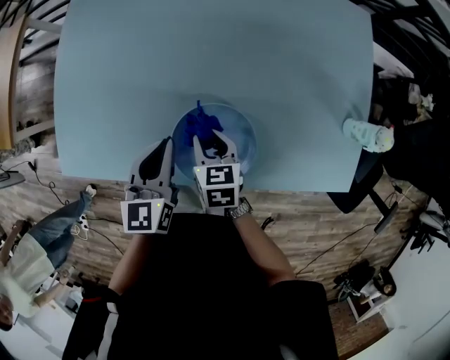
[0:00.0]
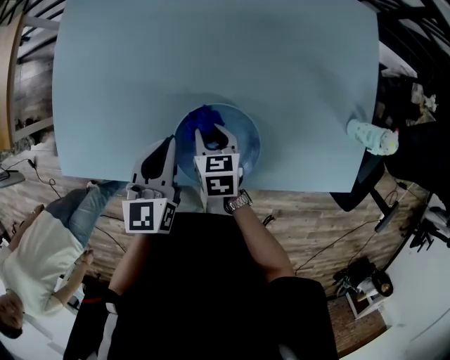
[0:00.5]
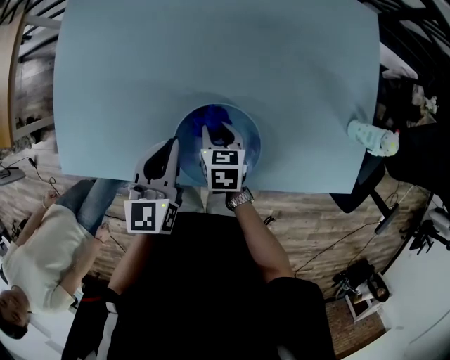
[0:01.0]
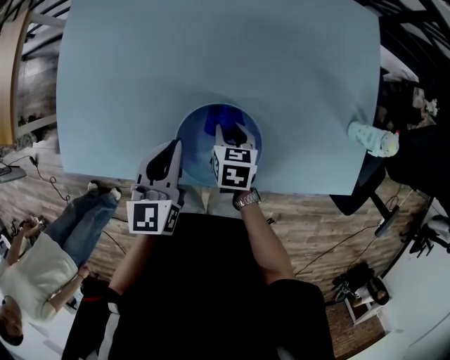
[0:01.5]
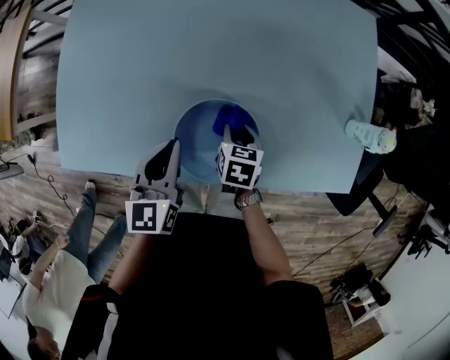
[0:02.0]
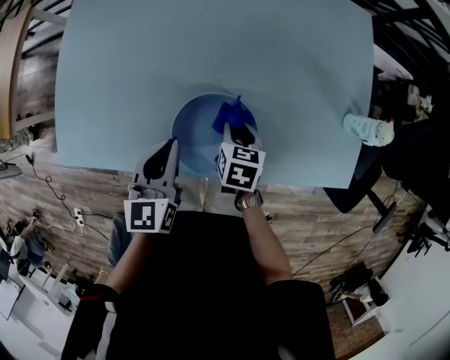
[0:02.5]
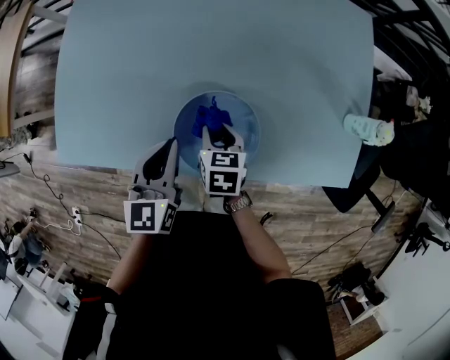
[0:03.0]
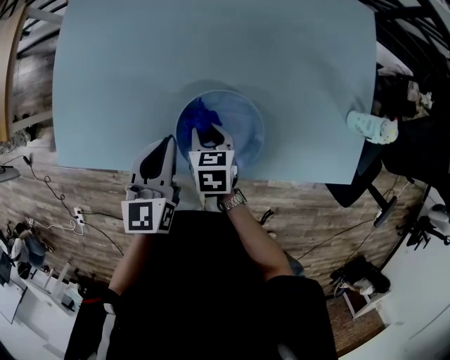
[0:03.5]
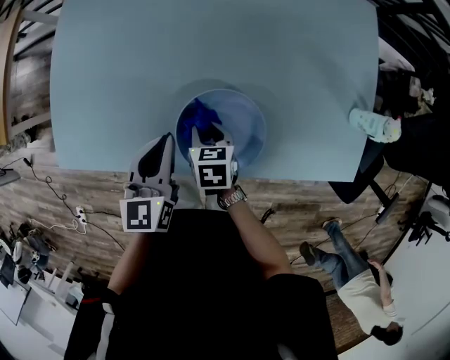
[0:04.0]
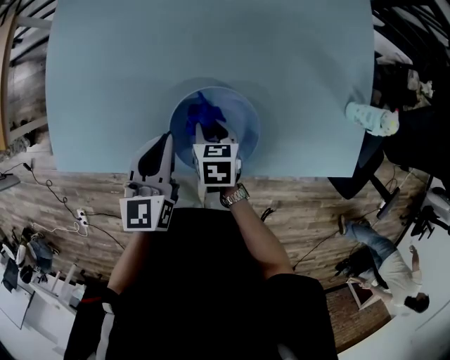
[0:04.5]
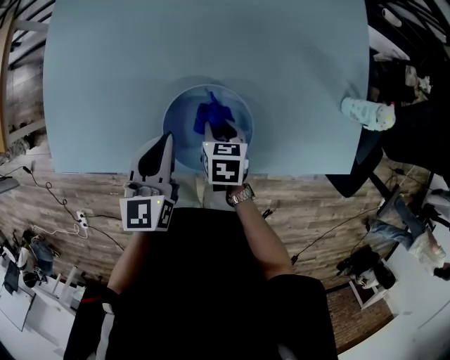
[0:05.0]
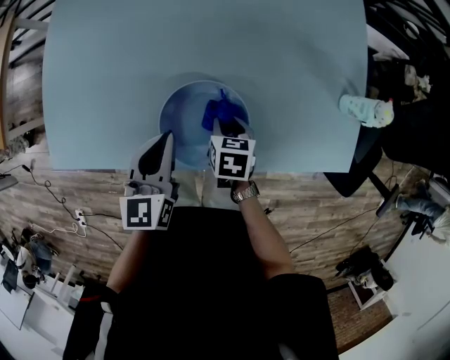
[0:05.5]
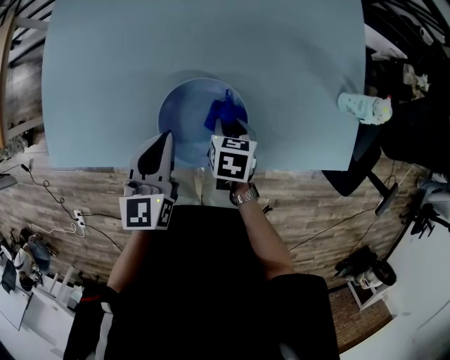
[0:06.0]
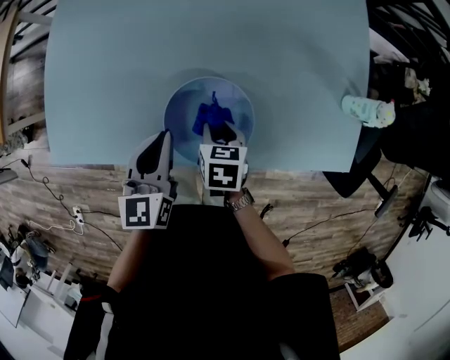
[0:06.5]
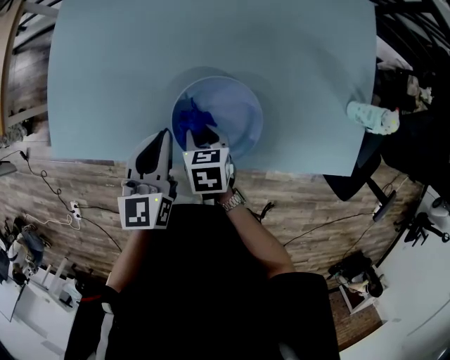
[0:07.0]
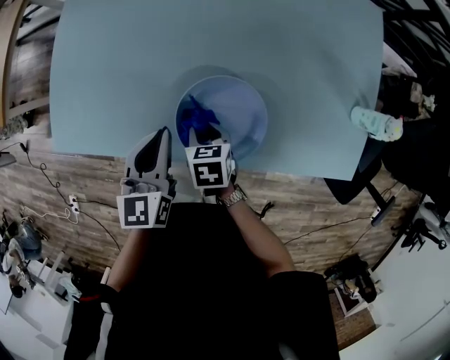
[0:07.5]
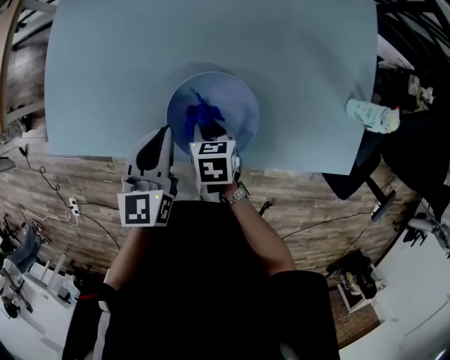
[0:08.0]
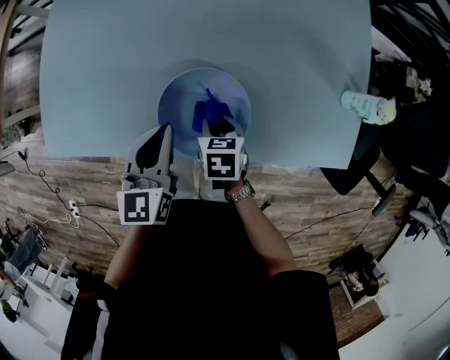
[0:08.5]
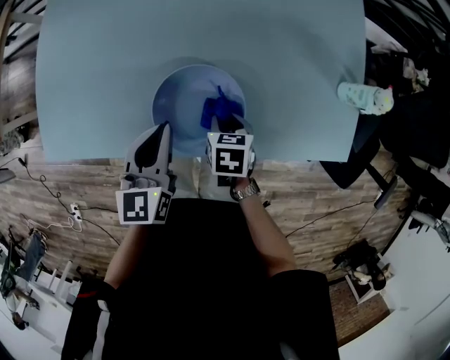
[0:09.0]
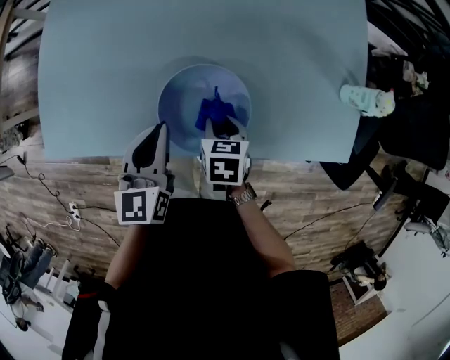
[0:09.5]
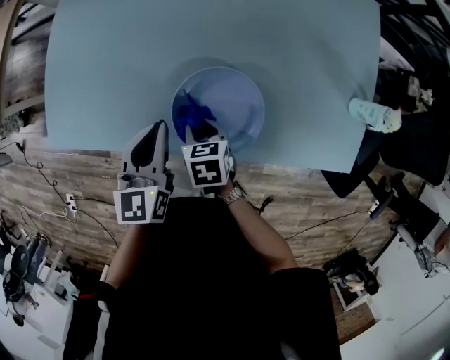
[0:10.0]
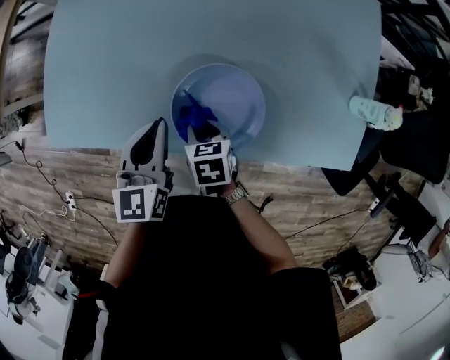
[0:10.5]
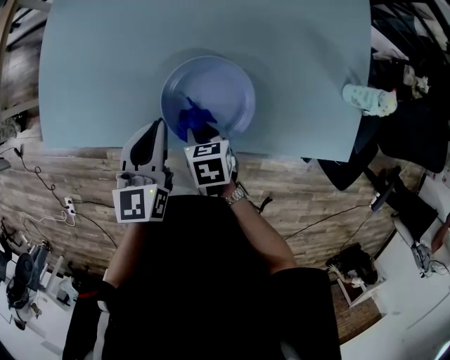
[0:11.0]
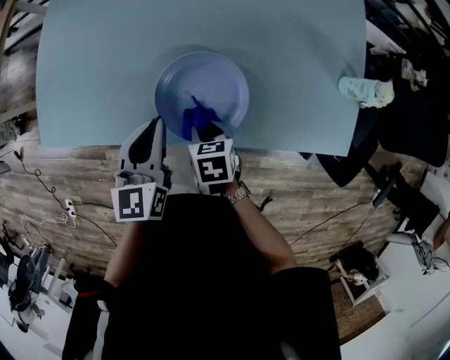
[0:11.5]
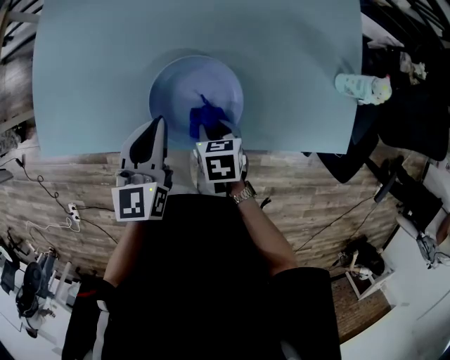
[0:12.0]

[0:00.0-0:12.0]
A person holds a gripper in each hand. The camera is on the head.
0:00.0 to 0:02.0: The right gripper travels to the right by roughly 10 cm.
0:02.0 to 0:04.0: The right gripper heads to the left, covering about 10 cm.
0:04.0 to 0:06.0: The right gripper shifts approximately 10 cm to the right, while the left gripper moves approximately 5 cm.
0:06.0 to 0:08.0: The right gripper moves to the left, some 10 cm.
0:08.0 to 0:10.0: The right gripper moves about 10 cm to the right and comes back.
0:10.0 to 0:12.0: The left gripper changes place by approximately 5 cm. The right gripper shifts about 10 cm to the right and backward.

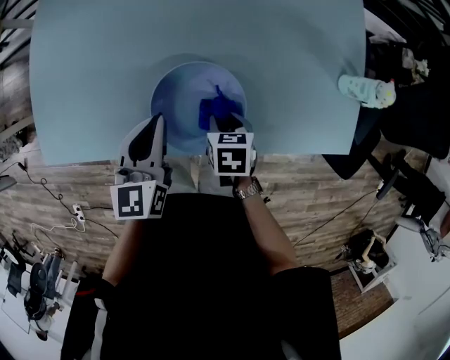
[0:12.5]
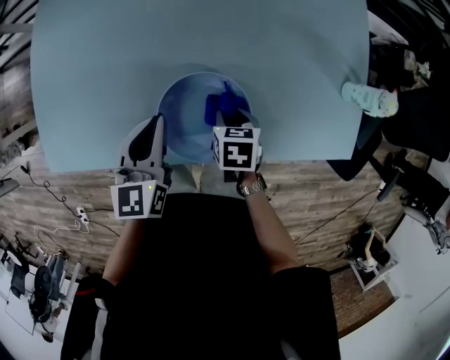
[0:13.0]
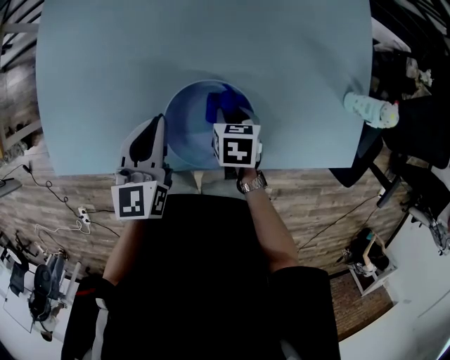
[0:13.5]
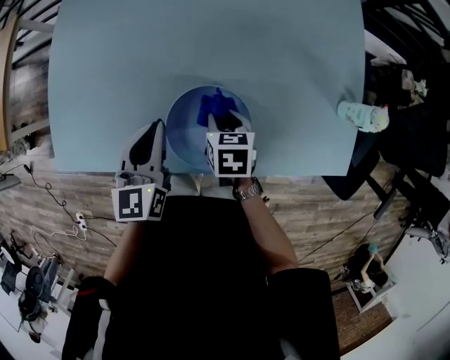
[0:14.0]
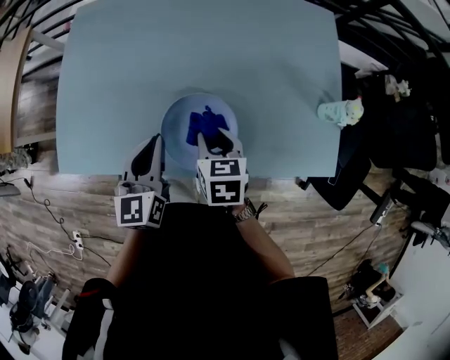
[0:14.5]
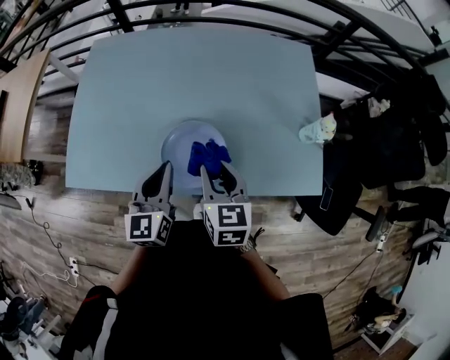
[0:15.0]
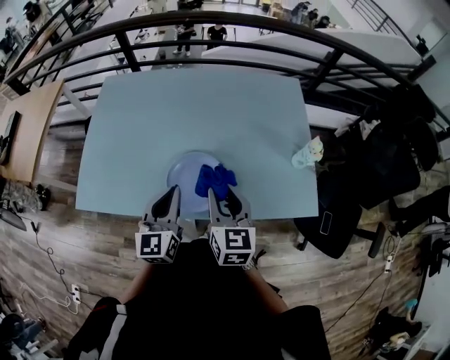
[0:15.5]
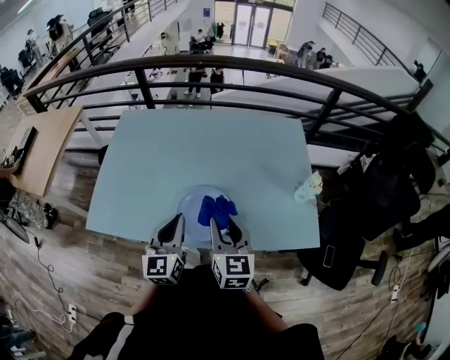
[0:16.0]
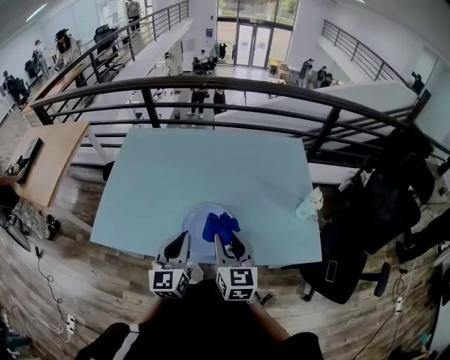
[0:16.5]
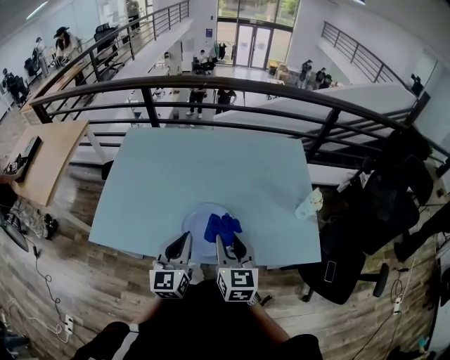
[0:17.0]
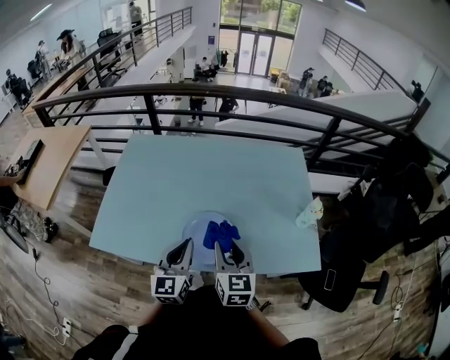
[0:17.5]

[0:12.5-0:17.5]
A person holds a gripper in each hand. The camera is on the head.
0:12.5 to 0:15.0: The right gripper goes about 25 cm upward, and tilts its fingers approximately 40 degrees upward. The left gripper shifts approximately 10 cm upward and backward.
0:15.0 to 0:17.5: The right gripper travels upward by some 5 cm. The left gripper shifts some 5 cm backward.

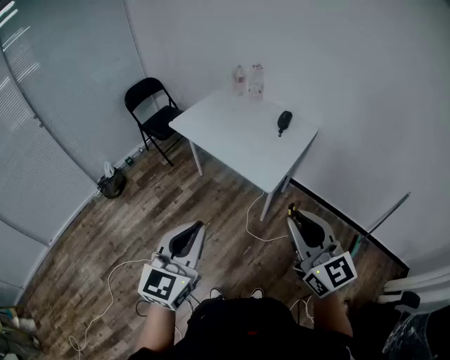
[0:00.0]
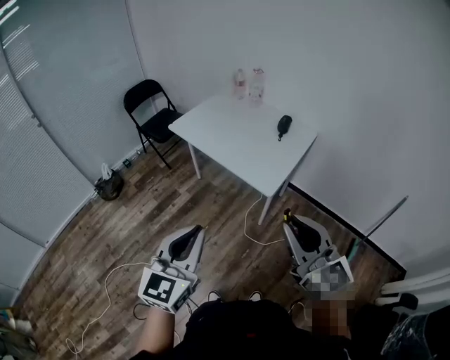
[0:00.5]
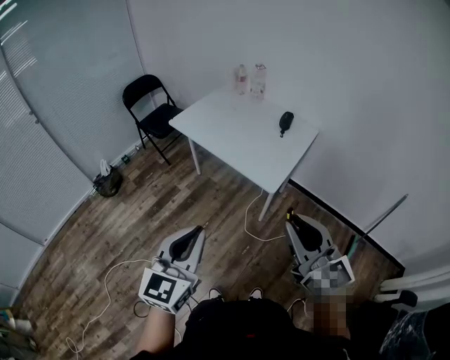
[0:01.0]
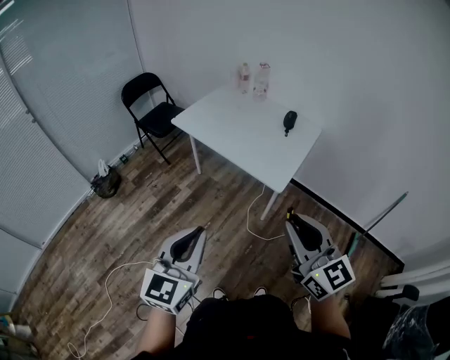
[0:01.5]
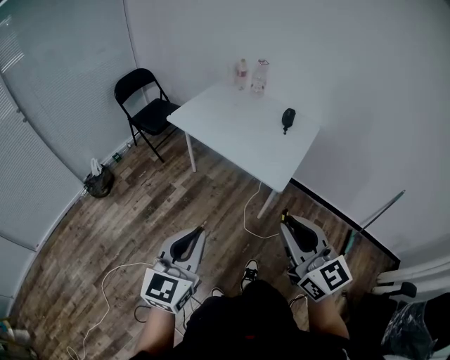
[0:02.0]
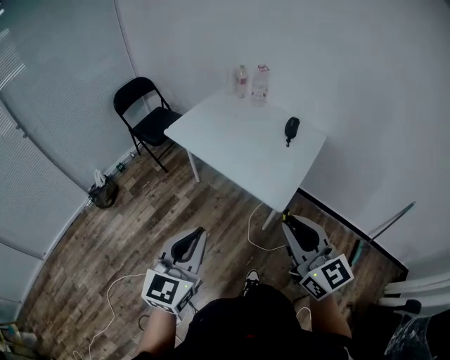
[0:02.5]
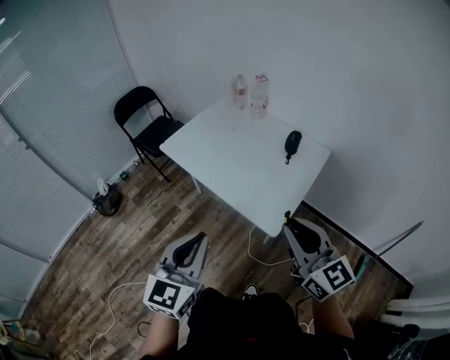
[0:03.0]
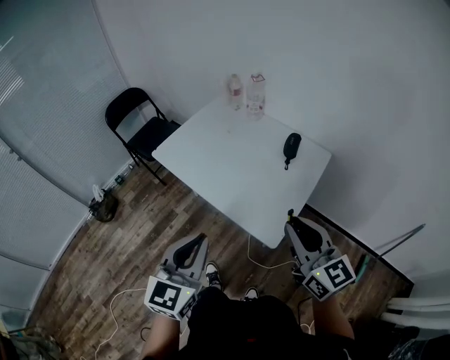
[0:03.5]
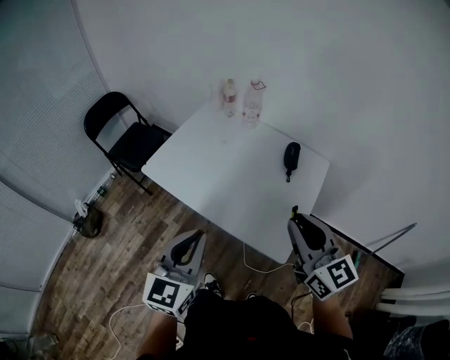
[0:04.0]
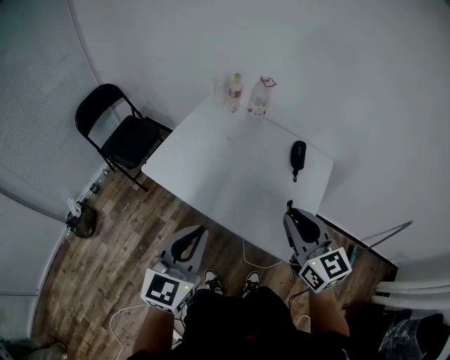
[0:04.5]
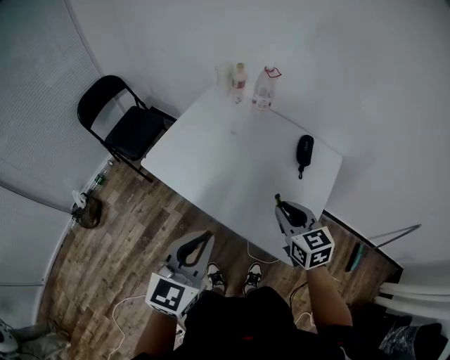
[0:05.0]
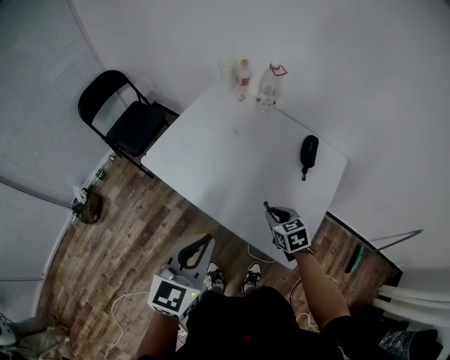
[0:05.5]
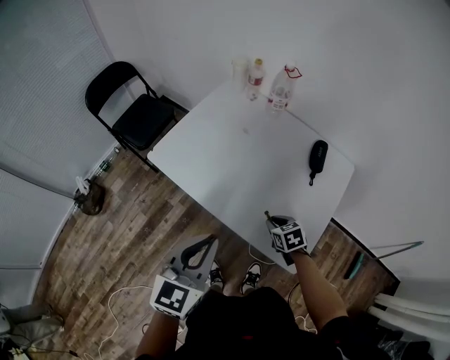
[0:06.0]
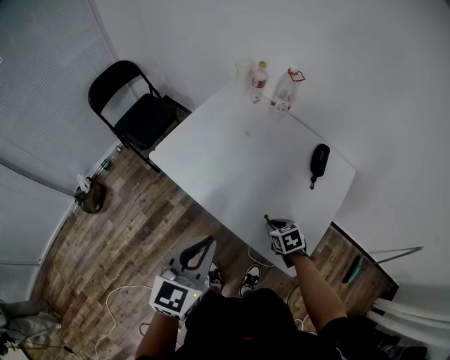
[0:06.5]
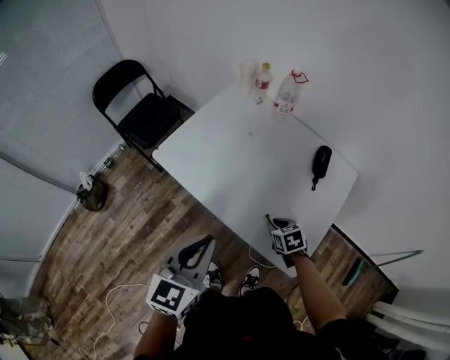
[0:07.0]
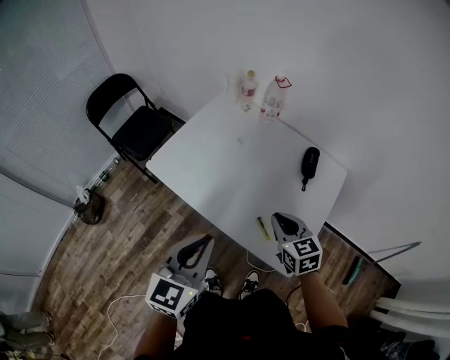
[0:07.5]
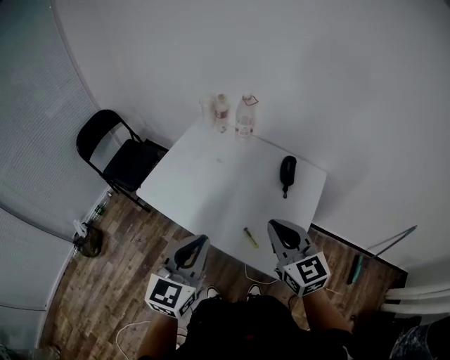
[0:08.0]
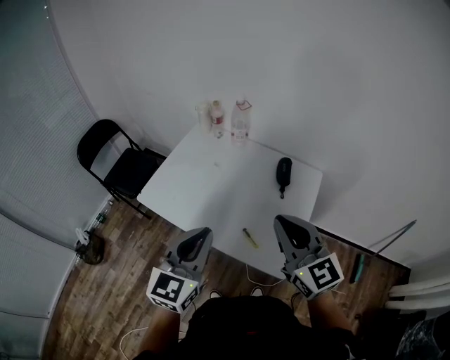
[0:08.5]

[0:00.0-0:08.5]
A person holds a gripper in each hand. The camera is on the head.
0:00.0 to 0:02.0: The left gripper shifts roughly 15 cm to the left and downward. The right gripper shifts roughly 15 cm to the left.
0:02.0 to 0:04.0: Both grippers move forward, some 40 cm.
0:04.0 to 0:06.5: The left gripper shifts approximately 10 cm forward and downward. Meanwhile the right gripper heads downward, covering roughly 40 cm, and points its fingers roughly 60 degrees further downward.
0:06.5 to 0:08.5: The left gripper is displaced upward and to the right by roughly 10 cm, while the right gripper moves upward, roughly 40 cm, and angles its fingers upward, by some 60 degrees.

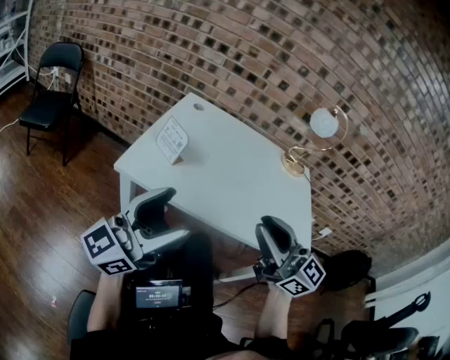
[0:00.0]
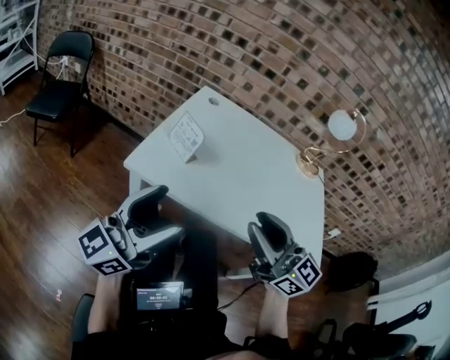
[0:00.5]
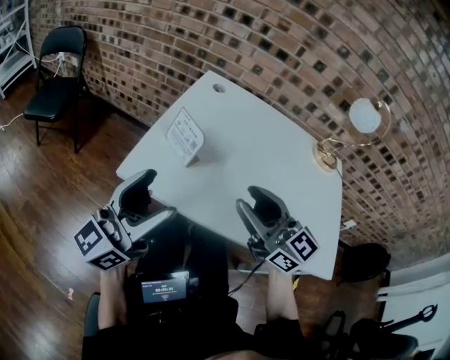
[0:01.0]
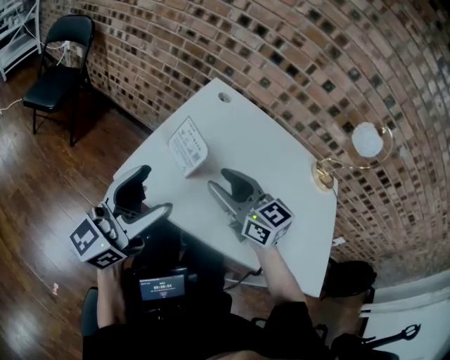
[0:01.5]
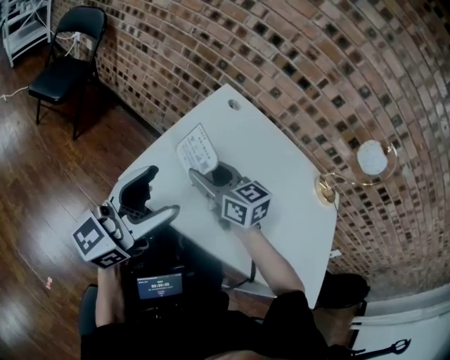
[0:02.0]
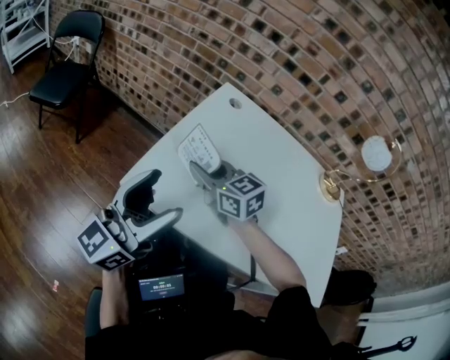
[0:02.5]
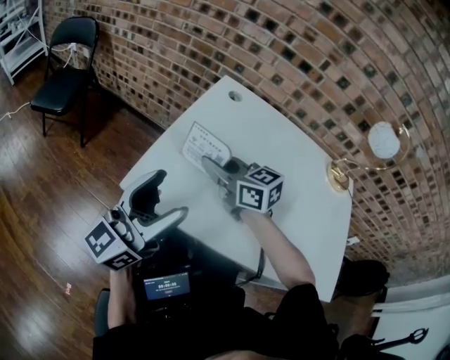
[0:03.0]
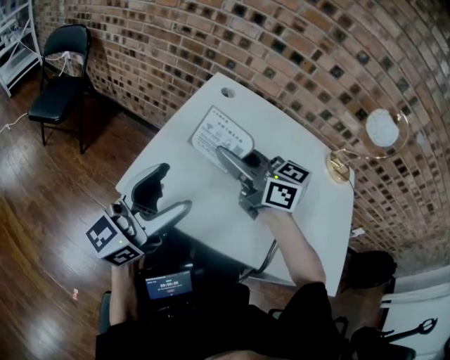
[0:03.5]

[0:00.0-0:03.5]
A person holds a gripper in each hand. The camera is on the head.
0:00.0 to 0:02.0: The left gripper is displaced forward and to the left by some 15 cm, while the right gripper is displaced forward, to the left and downward by approximately 40 cm, tips its fingers downward by roughly 30 degrees, and opens.
0:02.0 to 0:03.5: The left gripper changes place by about 5 cm. Meanwhile the right gripper heads upward, covering some 10 cm, and closes its fingers.
